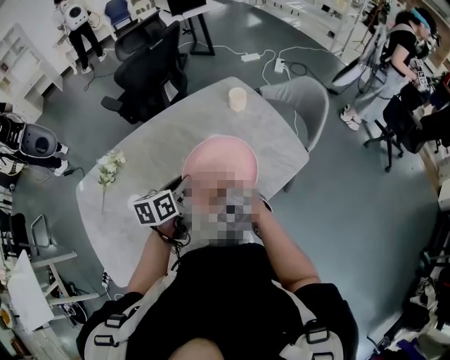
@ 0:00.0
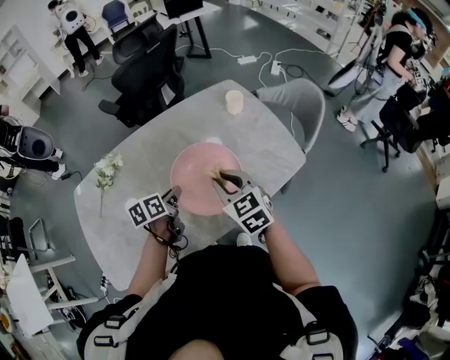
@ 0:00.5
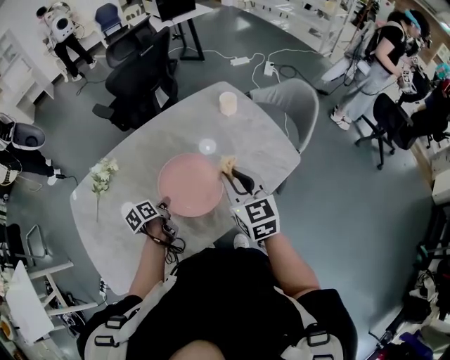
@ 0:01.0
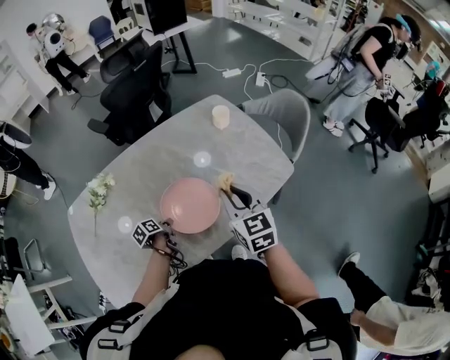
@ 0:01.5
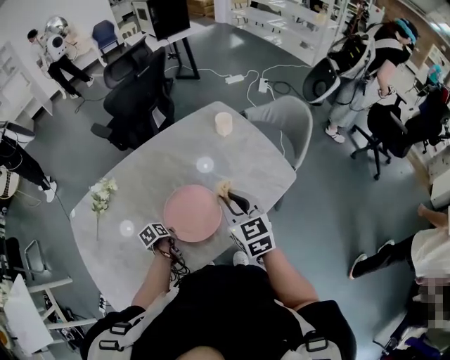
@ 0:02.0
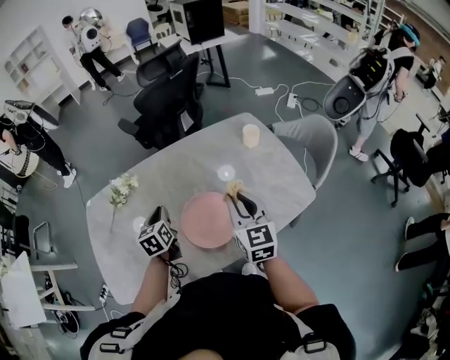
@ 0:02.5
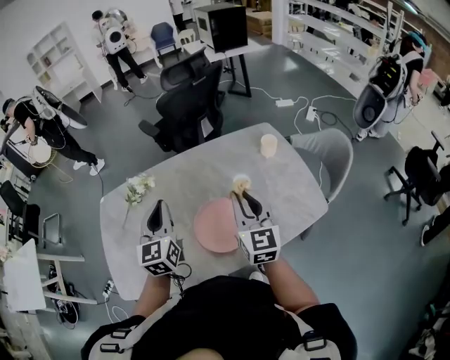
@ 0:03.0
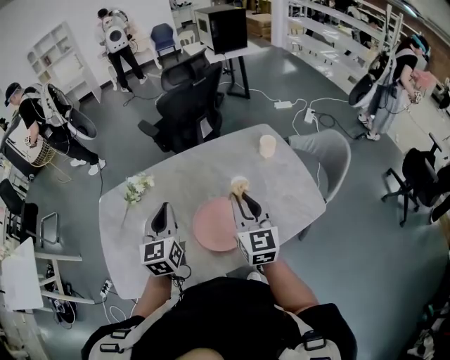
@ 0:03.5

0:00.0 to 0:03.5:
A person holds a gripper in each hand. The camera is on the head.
0:00.0 to 0:02.0: The right gripper is displaced upward and to the right by approximately 15 cm, and angles its fingers upward, by some 40 degrees. Meanwhile the left gripper shifts some 25 cm downward and to the left, and tilts its fingers roughly 30 degrees downward.
0:02.0 to 0:03.5: The right gripper moves upward, about 5 cm, while the left gripper heads upward, covering about 35 cm, and angles its fingers upward, by roughly 50 degrees.

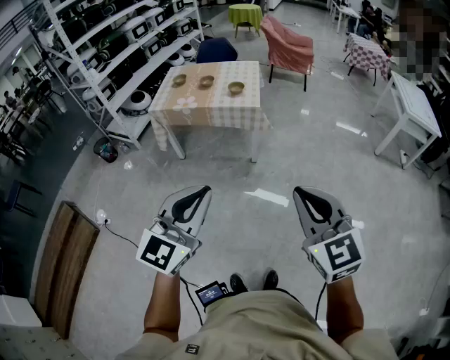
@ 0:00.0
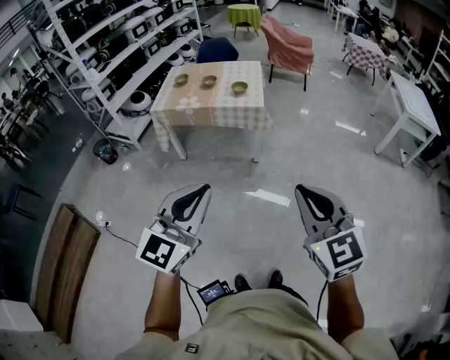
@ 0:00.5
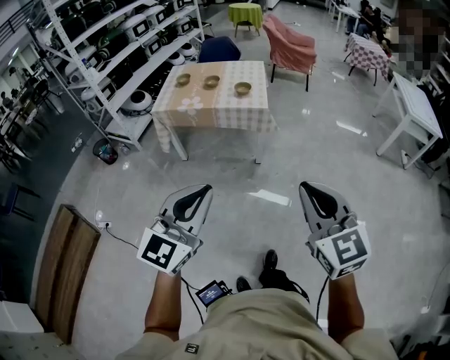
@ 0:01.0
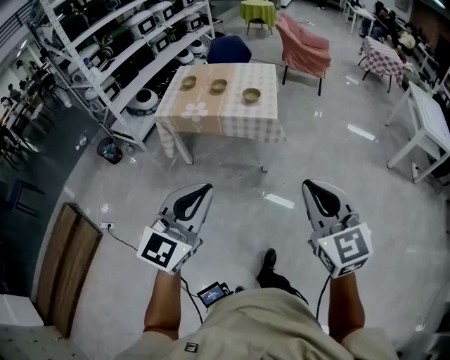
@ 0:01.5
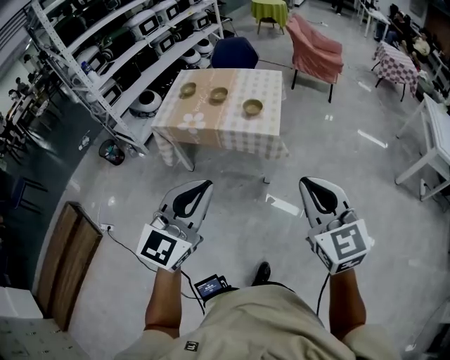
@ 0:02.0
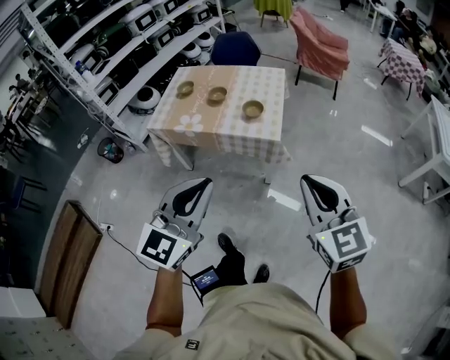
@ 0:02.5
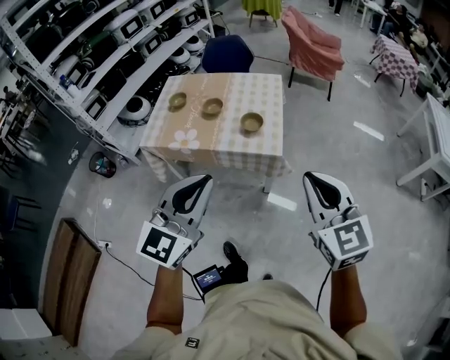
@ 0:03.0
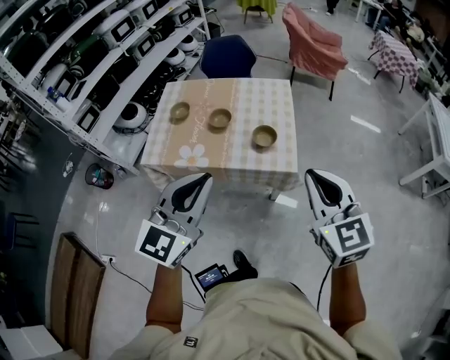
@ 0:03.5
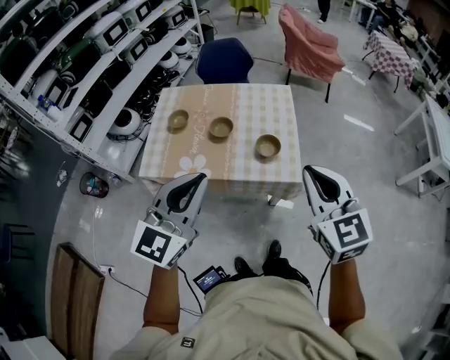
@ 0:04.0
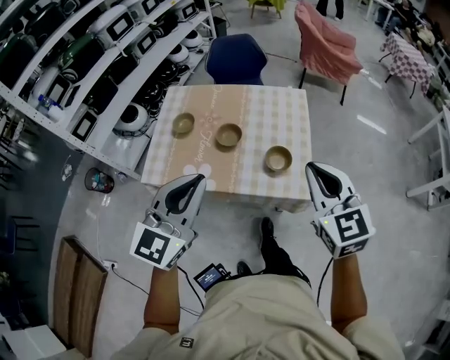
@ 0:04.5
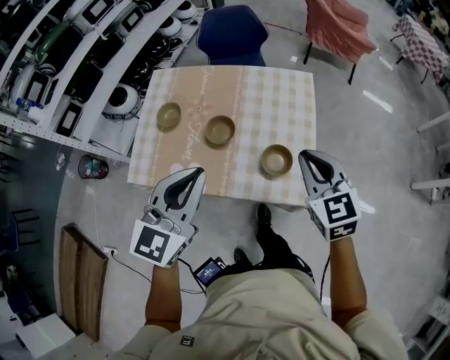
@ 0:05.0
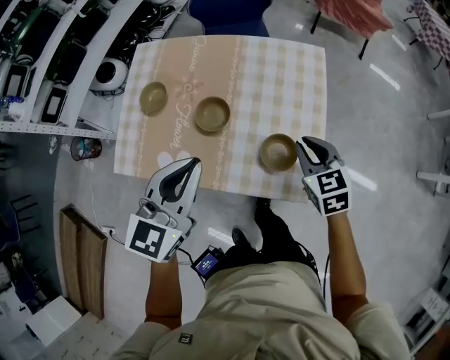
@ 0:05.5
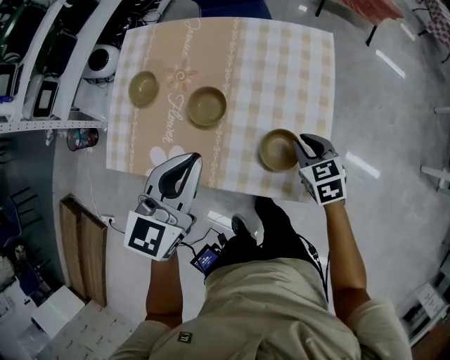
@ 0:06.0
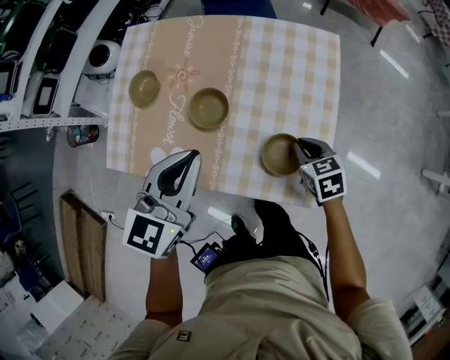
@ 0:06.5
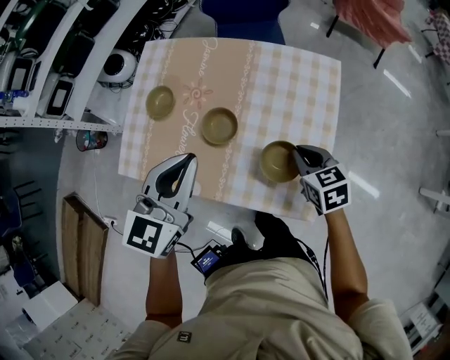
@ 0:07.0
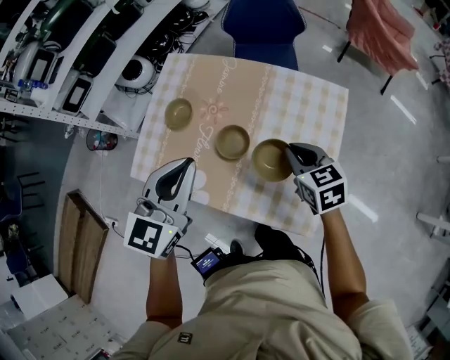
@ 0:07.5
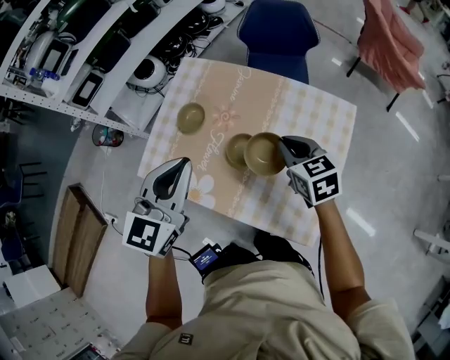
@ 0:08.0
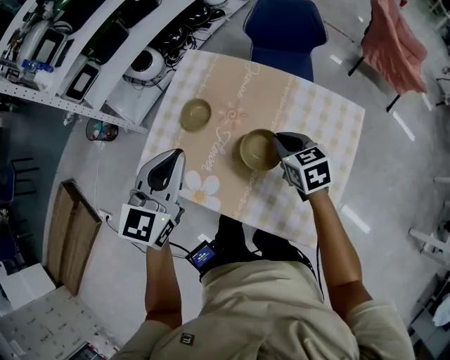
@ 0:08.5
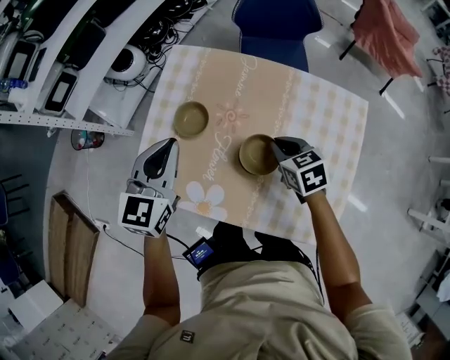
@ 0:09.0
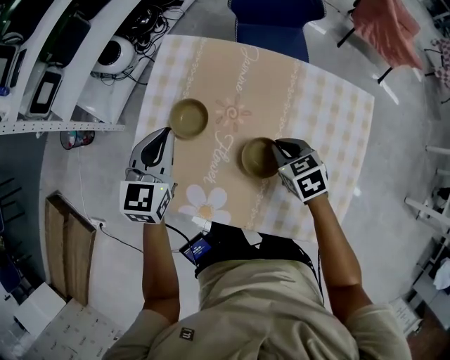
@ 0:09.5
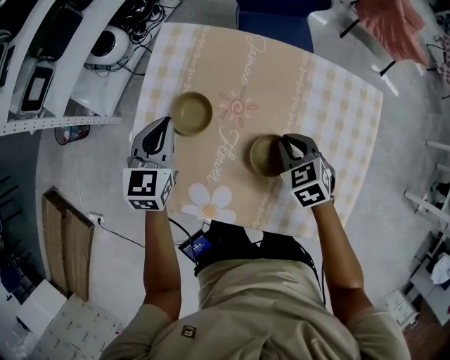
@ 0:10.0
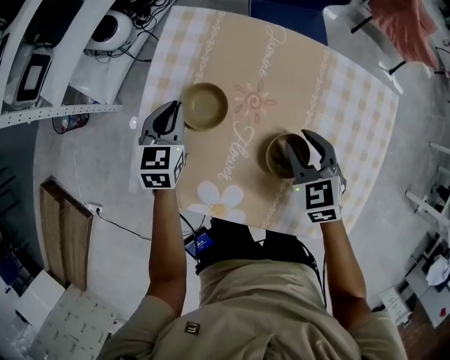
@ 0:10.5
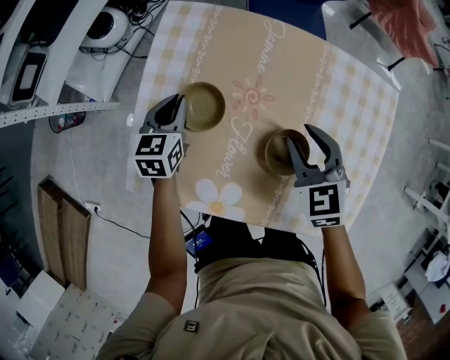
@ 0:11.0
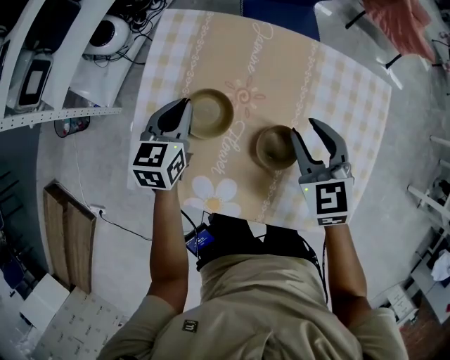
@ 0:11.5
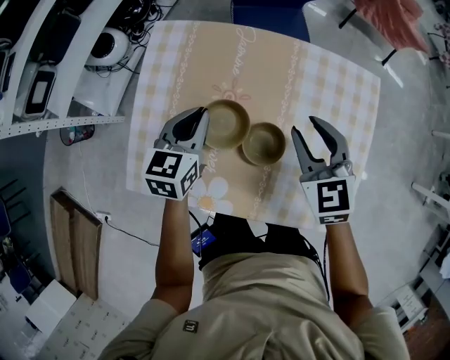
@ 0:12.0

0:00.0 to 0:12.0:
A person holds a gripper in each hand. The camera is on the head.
0:00.0 to 0:02.0: Both grippers travel together forward, roughly 30 cm.
0:02.0 to 0:04.0: The grippers both shift forward and to the left by roughly 40 cm.
0:04.0 to 0:06.0: The left gripper goes roughly 35 cm forward and downward, and turns by about 20 degrees, while the right gripper is displaced downward and forward by roughly 50 cm, and tips its fingers downward by some 30 degrees.
0:06.0 to 0:08.0: The left gripper moves upward, to the left and forward, about 15 cm; the right gripper heads upward, forward and to the left, covering some 25 cm.
0:08.0 to 0:10.0: The left gripper goes some 35 cm downward, forward and to the left. The right gripper moves downward and to the left, some 20 cm, and swivels some 30 degrees.
0:10.0 to 0:12.0: The left gripper goes roughly 10 cm to the right; the right gripper goes roughly 15 cm upward, turns by approximately 20 degrees, and opens its fingers.

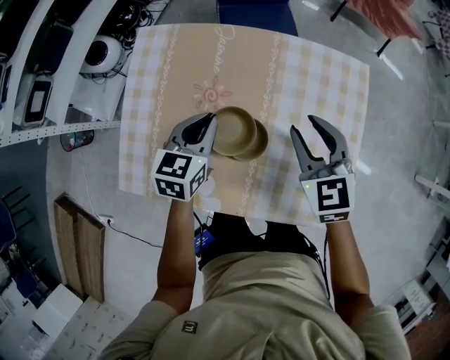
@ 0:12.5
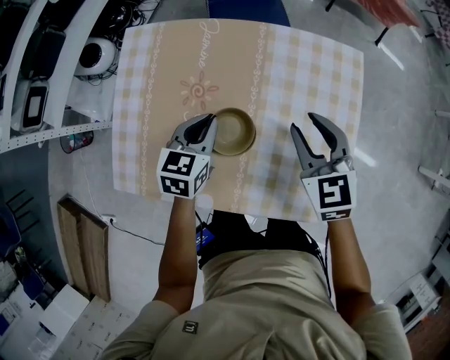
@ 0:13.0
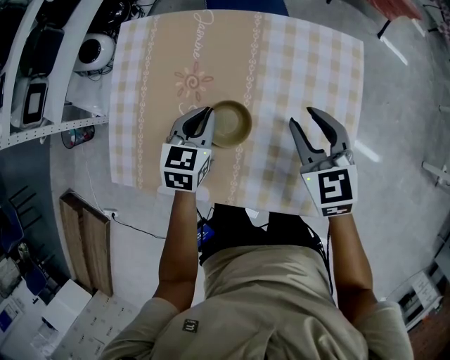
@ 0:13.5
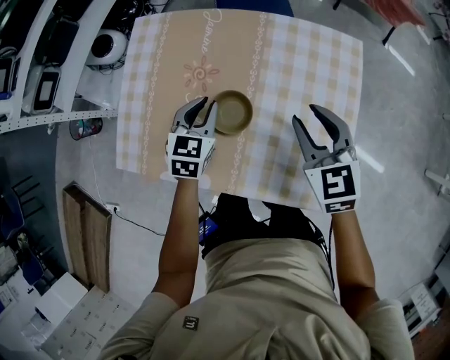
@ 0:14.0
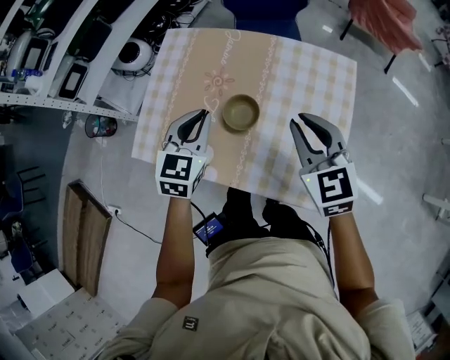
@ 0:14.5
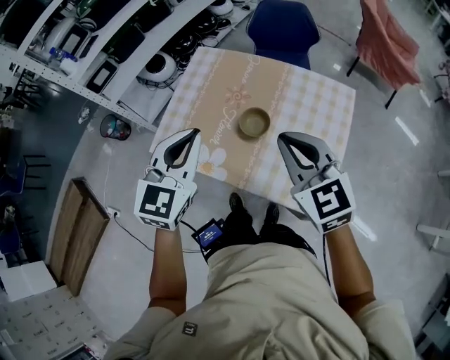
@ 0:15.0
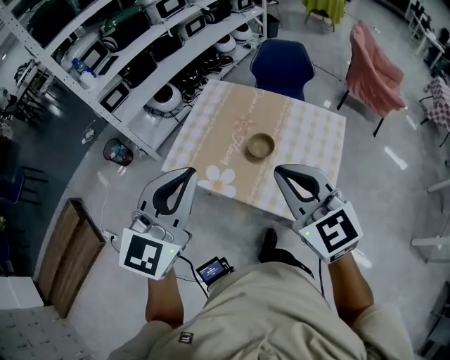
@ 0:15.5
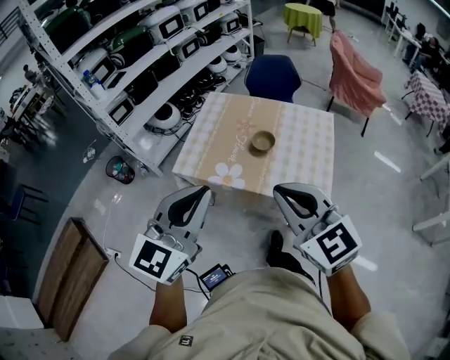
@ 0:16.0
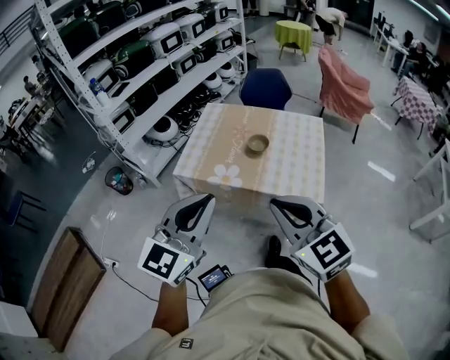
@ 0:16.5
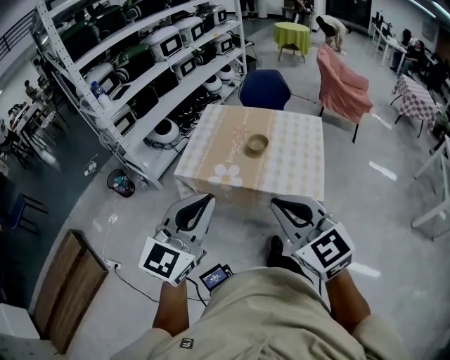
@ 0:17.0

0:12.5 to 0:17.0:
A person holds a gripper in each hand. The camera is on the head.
0:12.5 to 0:14.5: The left gripper heads upward and backward, covering about 15 cm, and rotates about 20 degrees, while the right gripper heads backward and upward, covering approximately 15 cm, and closes.
0:14.5 to 0:17.0: Both grippers are carried backward, about 40 cm. Both grippers move upward, about 25 cm. The left gripper swivels about 30 degrees.

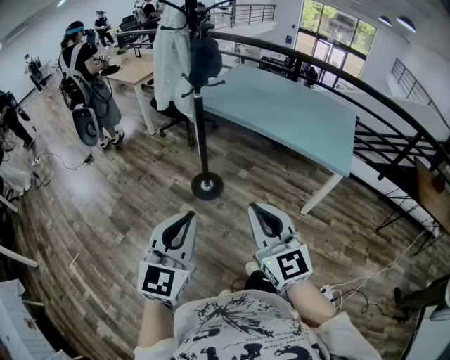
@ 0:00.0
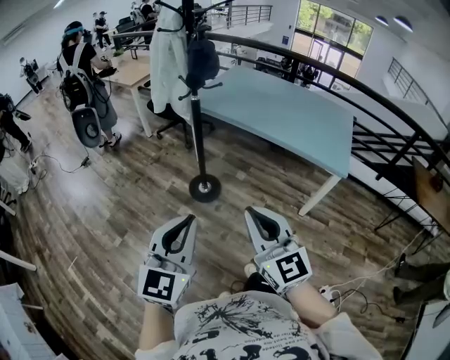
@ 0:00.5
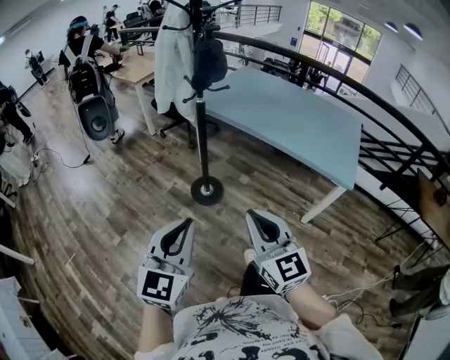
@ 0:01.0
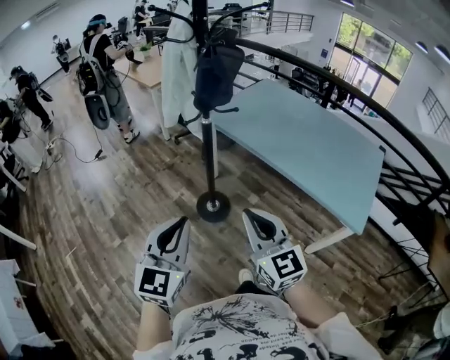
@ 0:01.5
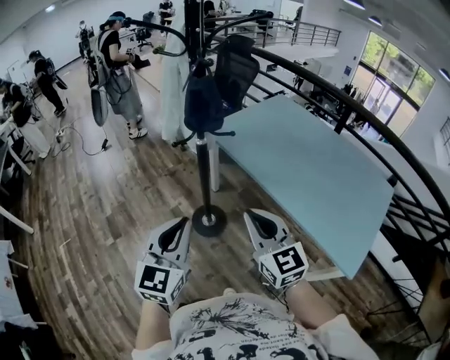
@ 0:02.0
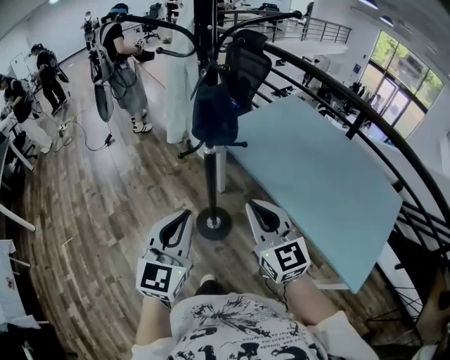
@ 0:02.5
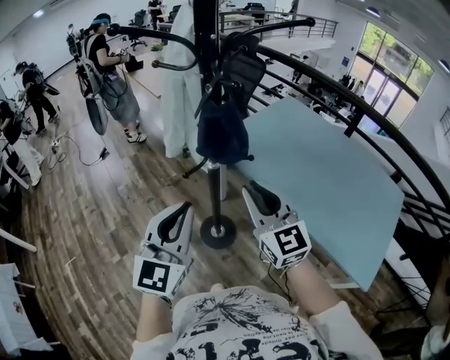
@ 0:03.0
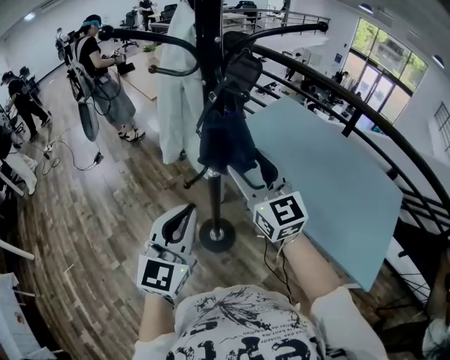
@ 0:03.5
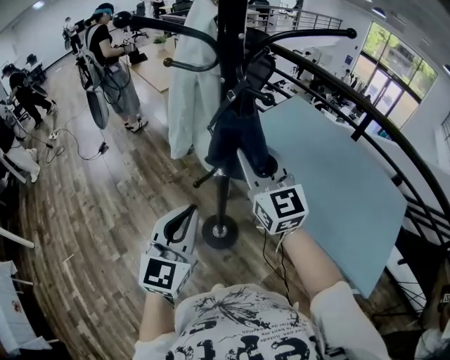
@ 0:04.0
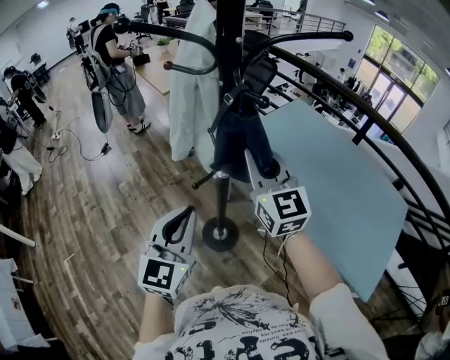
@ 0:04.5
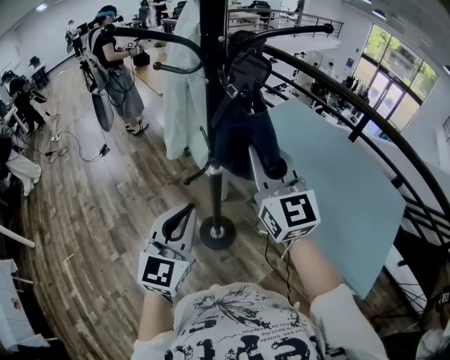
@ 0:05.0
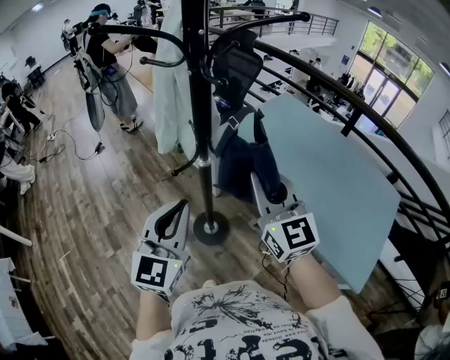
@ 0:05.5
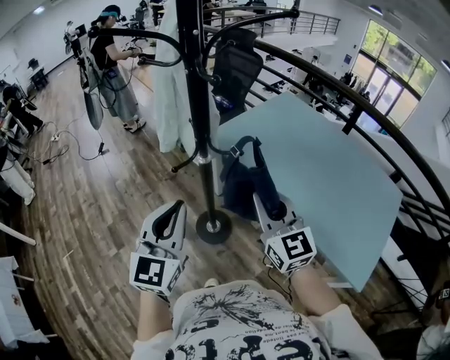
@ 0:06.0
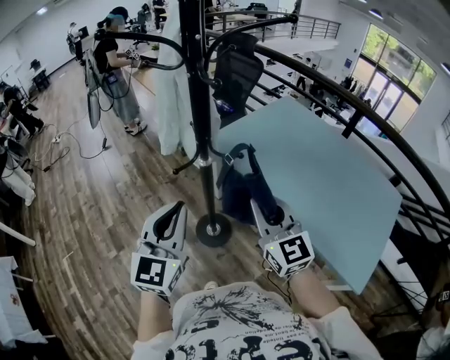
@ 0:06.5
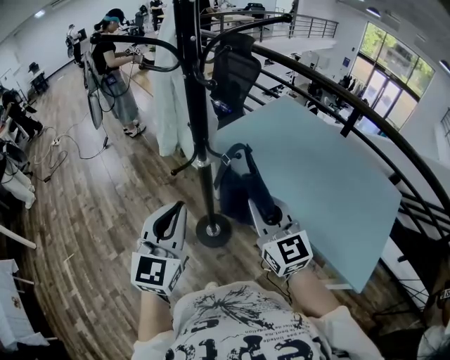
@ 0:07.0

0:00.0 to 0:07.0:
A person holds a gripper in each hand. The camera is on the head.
0:00.0 to 0:02.0: The two grippers go about 35 cm forward and to the right. The right gripper swivels about 20 degrees; the left gripper turns by some 20 degrees.
0:02.0 to 0:03.5: Both grippers travel together forward, roughly 25 cm. The right gripper opens up.
0:03.5 to 0:05.0: The right gripper travels upward by approximately 5 cm, and closes its fingers.
0:05.0 to 0:07.0: The left gripper ends up roughly 5 cm from where it was. Meanwhile the right gripper heads backward, downward and to the right, covering about 15 cm.
